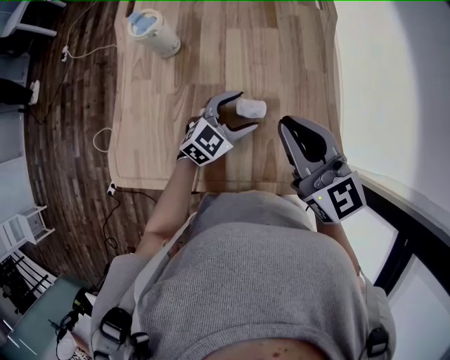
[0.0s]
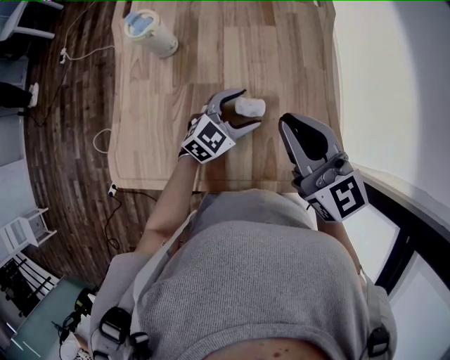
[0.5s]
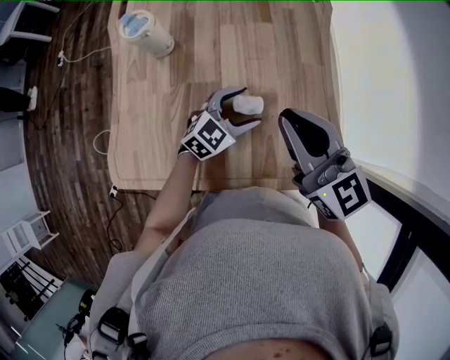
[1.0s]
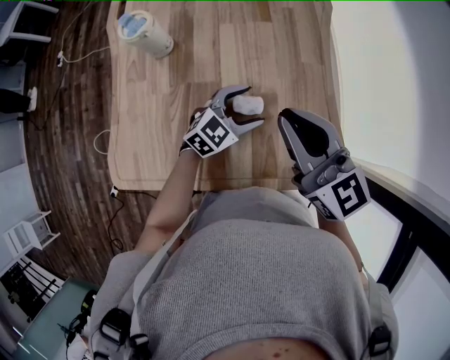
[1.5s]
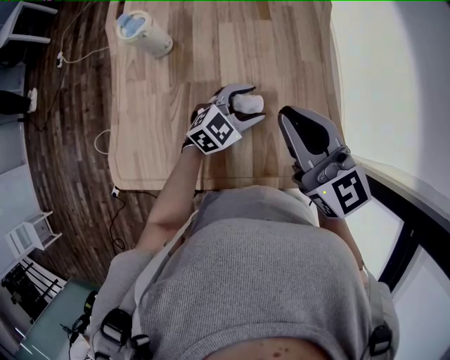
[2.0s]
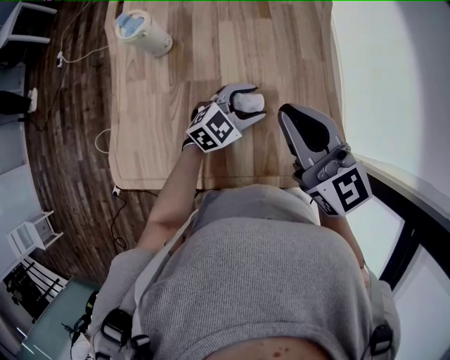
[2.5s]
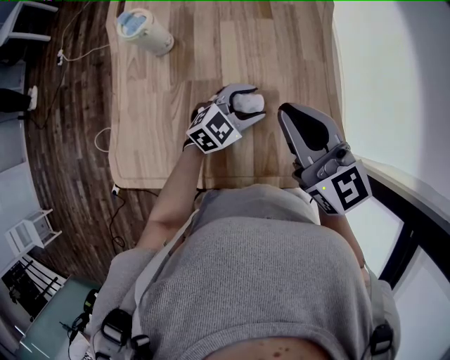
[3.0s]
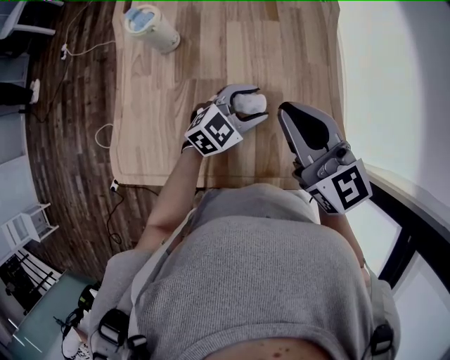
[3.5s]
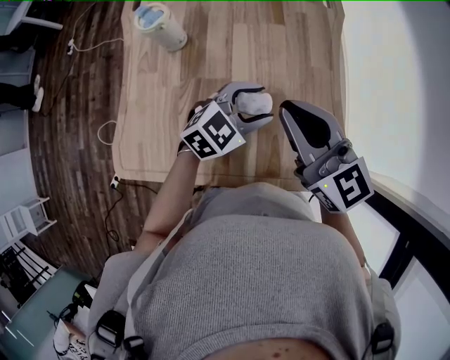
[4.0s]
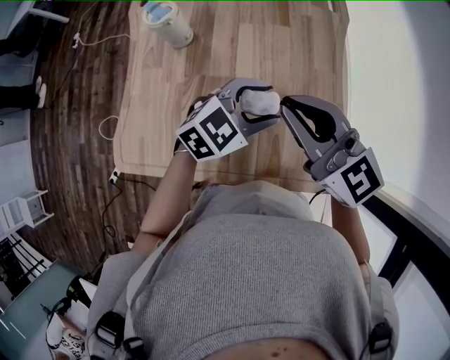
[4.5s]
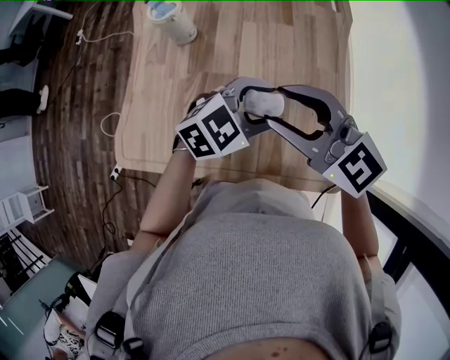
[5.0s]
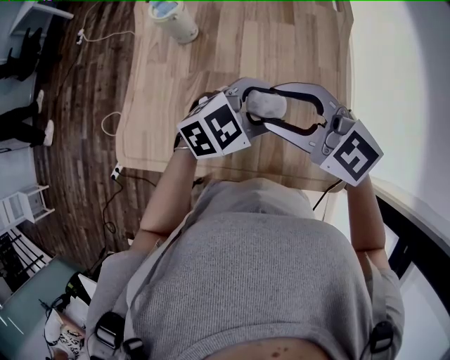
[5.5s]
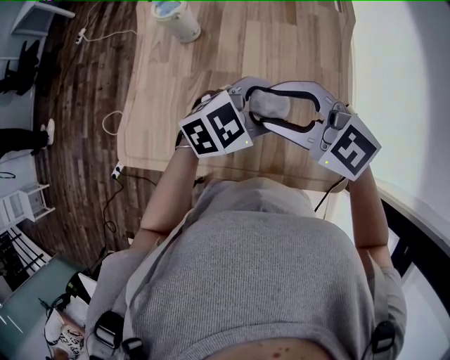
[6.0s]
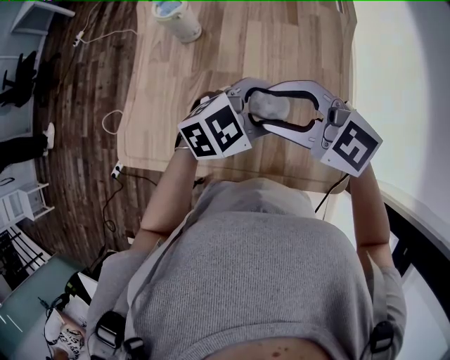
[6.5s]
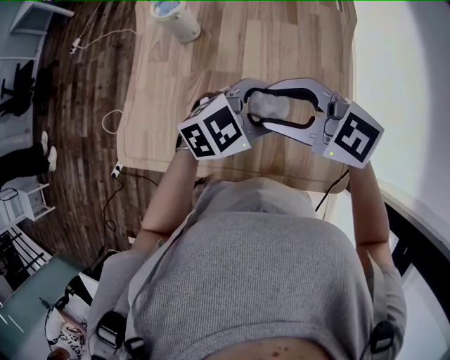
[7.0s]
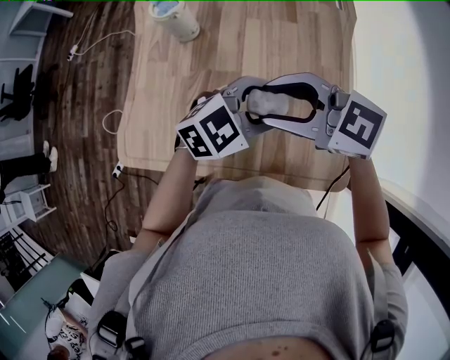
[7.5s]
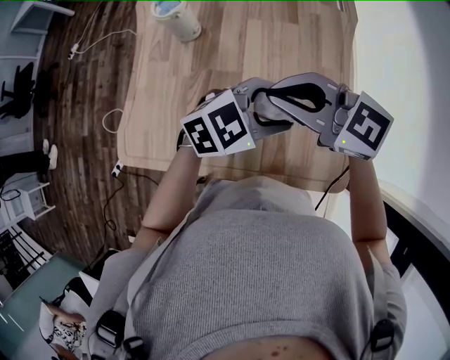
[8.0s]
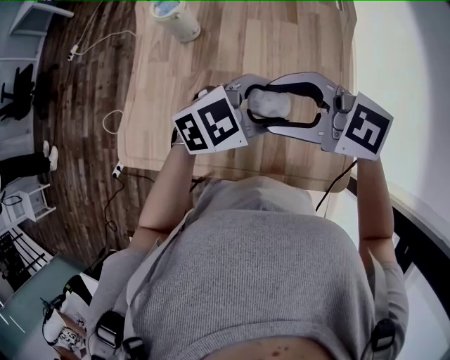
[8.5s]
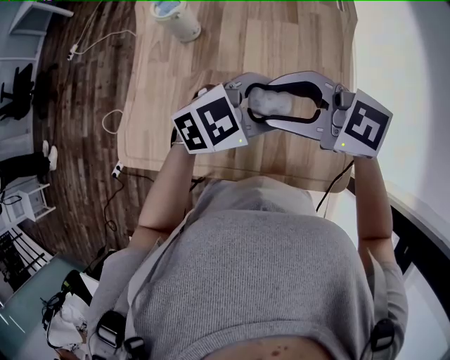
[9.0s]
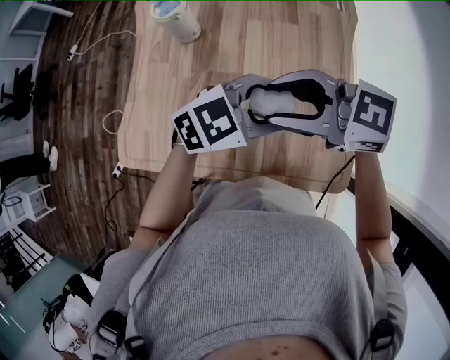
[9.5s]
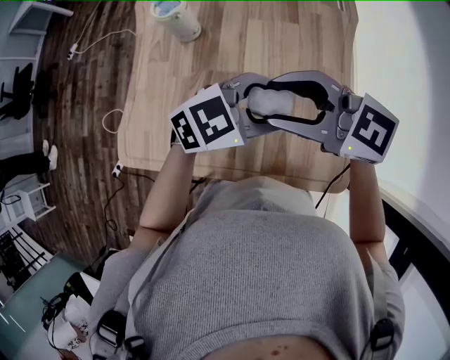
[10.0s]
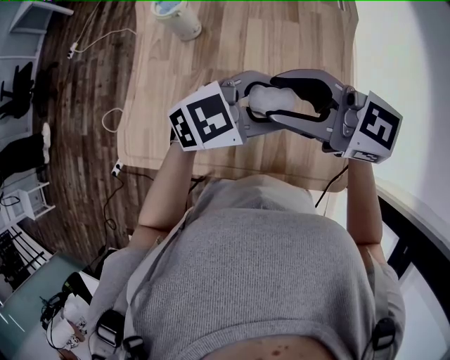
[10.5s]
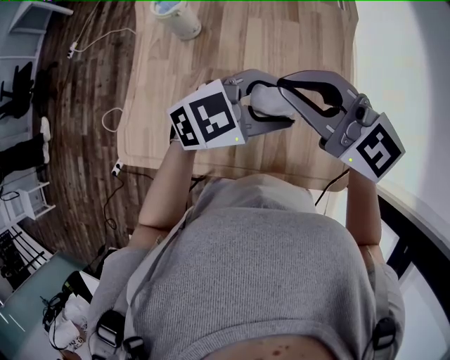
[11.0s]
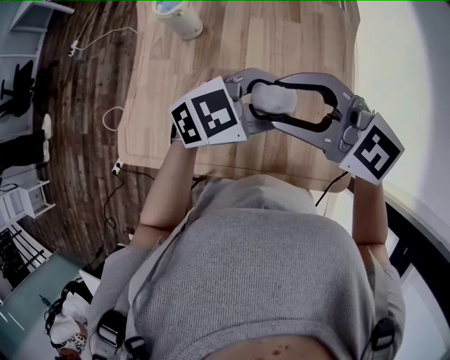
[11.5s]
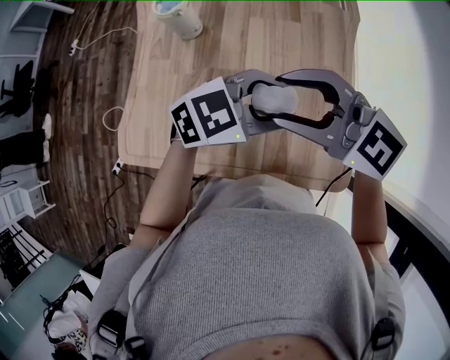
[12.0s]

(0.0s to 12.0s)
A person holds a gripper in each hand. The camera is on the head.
0.0s - 2.0s: The grippers move only a little.
2.0s - 4.0s: The left gripper moves upward, about 10 cm.
4.0s - 6.0s: The right gripper shifts by some 5 cm, turns by some 40 degrees, and opens its fingers, while the left gripper moves upward, some 5 cm.
6.0s - 8.0s: The right gripper closes up.
8.0s - 10.0s: The right gripper opens its fingers.
10.0s - 12.0s: The right gripper closes, then opens again.

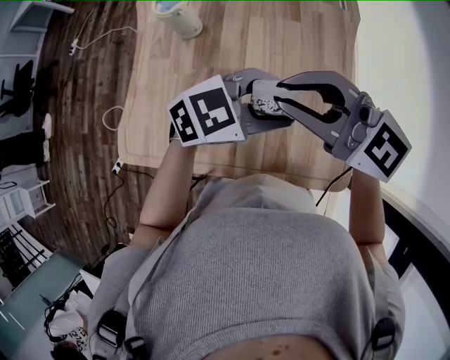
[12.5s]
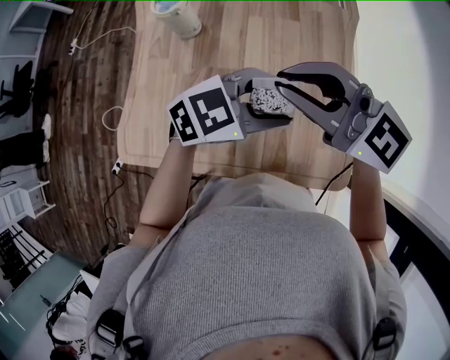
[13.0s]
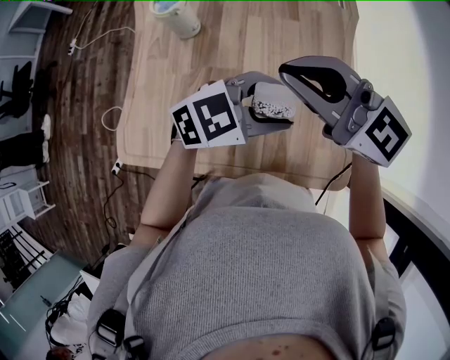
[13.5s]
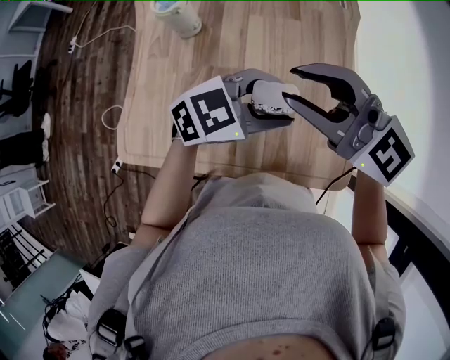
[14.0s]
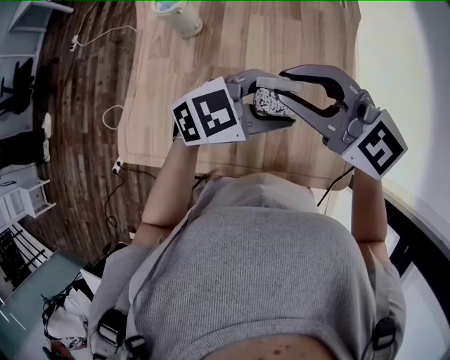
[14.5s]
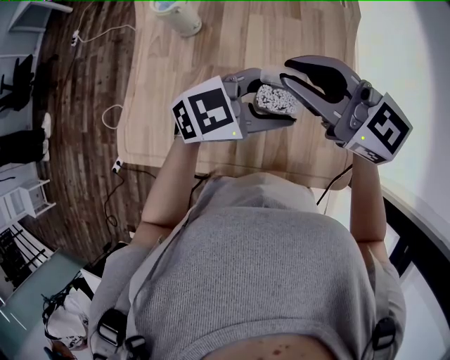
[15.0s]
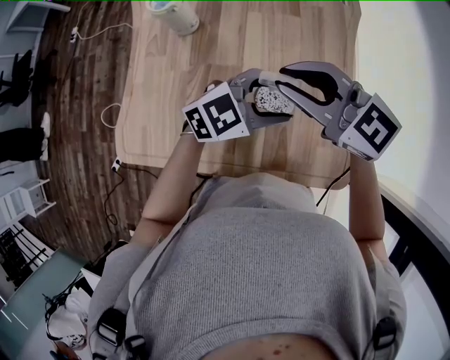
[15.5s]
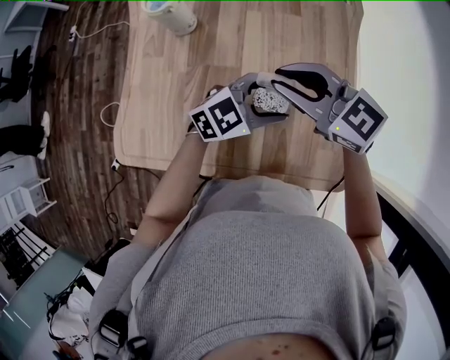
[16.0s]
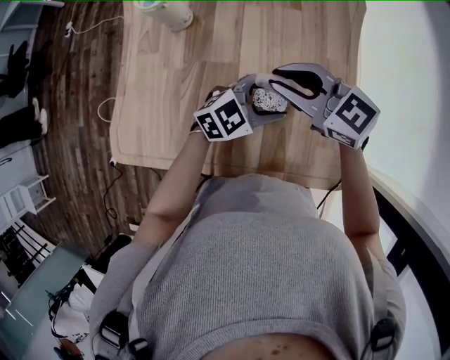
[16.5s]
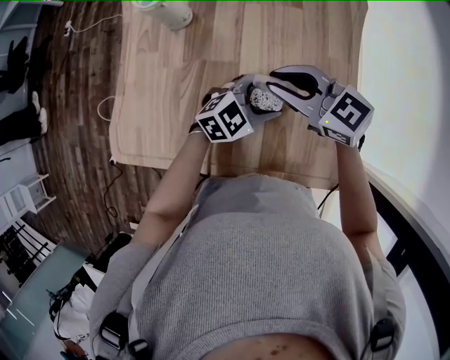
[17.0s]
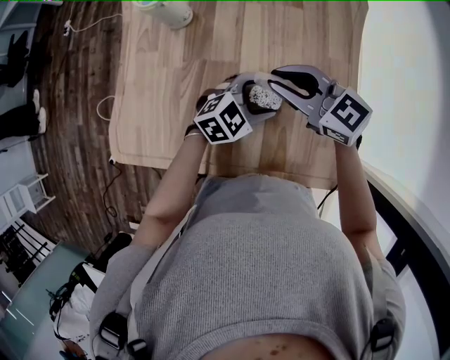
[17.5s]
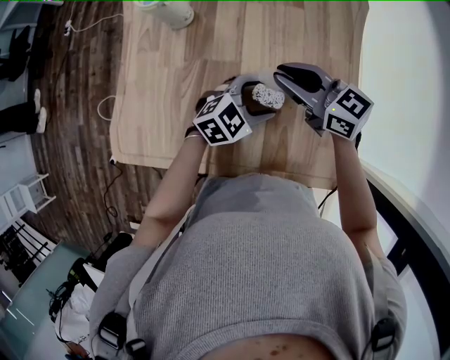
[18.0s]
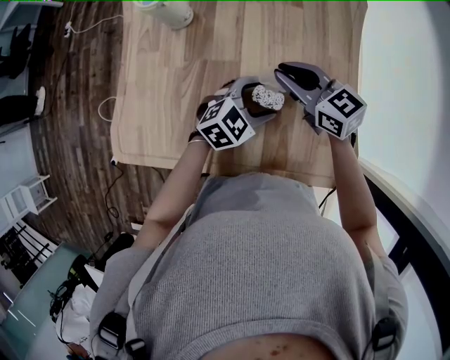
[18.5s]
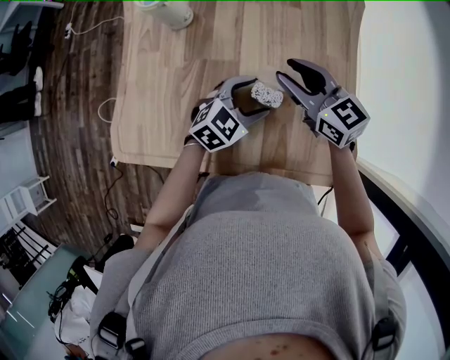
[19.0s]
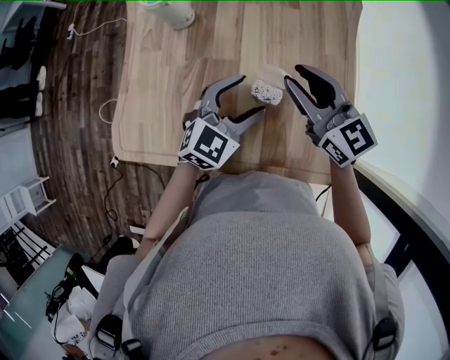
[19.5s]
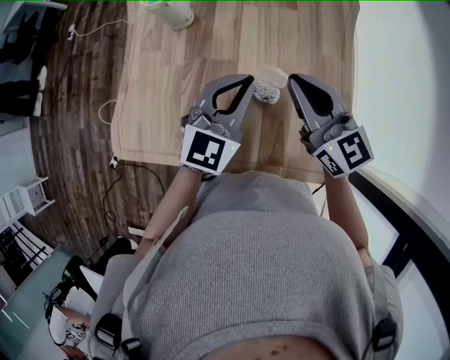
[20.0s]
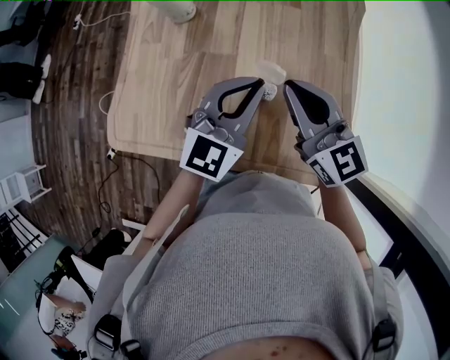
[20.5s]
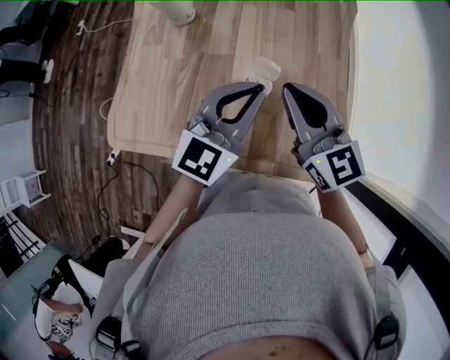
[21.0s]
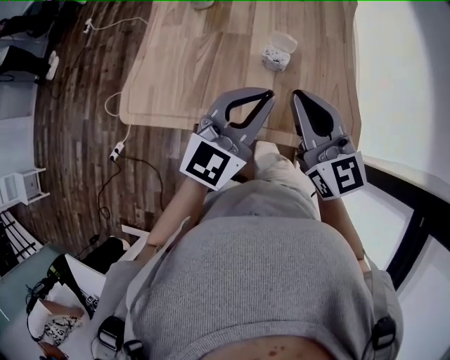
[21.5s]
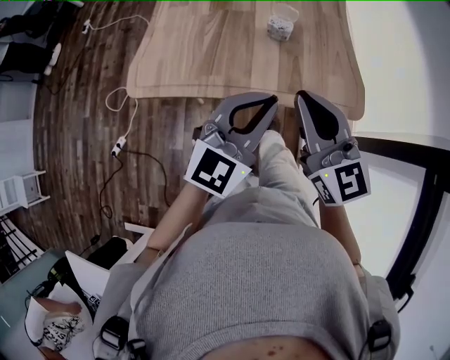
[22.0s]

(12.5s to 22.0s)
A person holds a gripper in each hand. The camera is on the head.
12.5s - 14.5s: The grippers make only small movements.
14.5s - 16.5s: The two grippers go some 15 cm downward.
16.5s - 18.0s: The grippers move only a little.
18.0s - 20.0s: The left gripper moves upward, some 15 cm, changes its angle by roughly 40 degrees, and closes its fingers. Meanwhile the right gripper travels upward by about 10 cm, and rotates approximately 30 degrees.
20.0s - 22.0s: Both grippers move backward, roughly 25 cm.

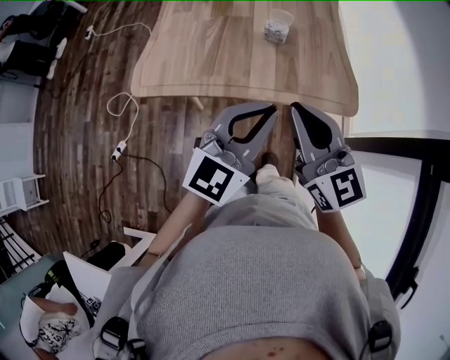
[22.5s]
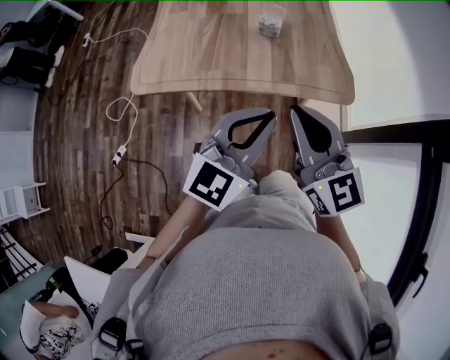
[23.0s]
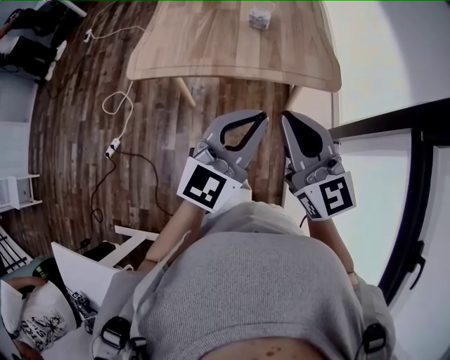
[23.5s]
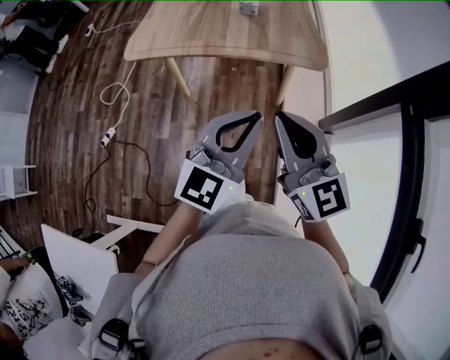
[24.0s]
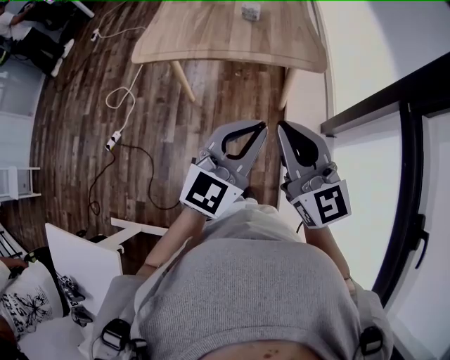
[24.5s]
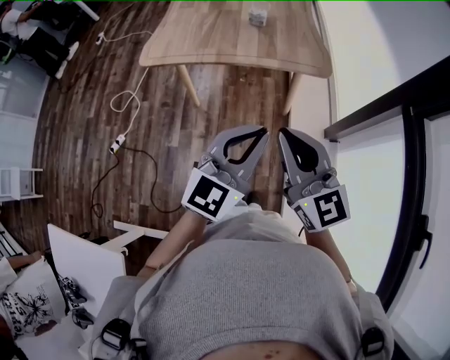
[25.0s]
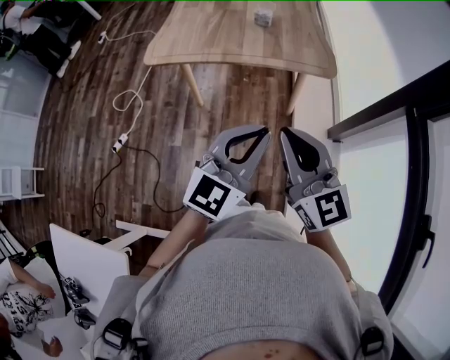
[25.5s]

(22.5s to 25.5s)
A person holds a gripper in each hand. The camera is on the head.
22.5s - 24.0s: The two grippers go about 20 cm backward.
24.0s - 25.5s: There are only small adjustments of the grippers.

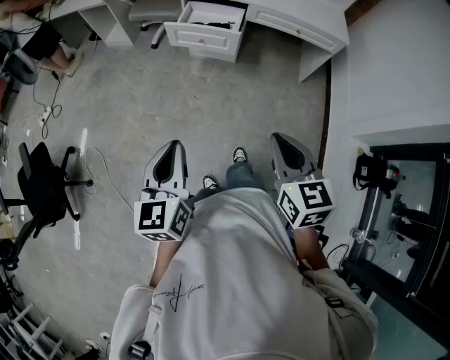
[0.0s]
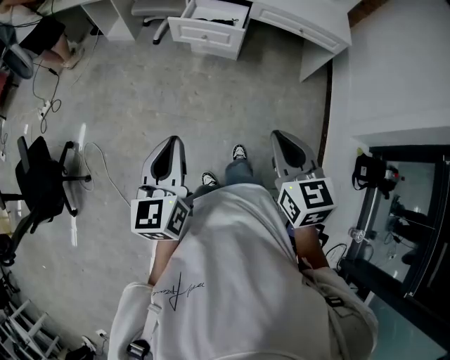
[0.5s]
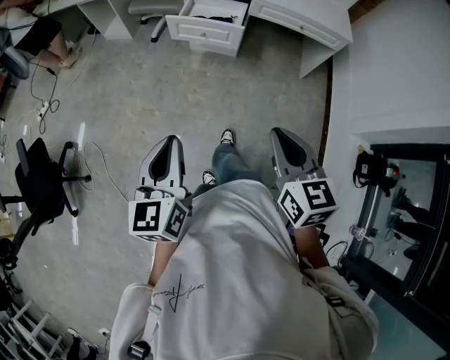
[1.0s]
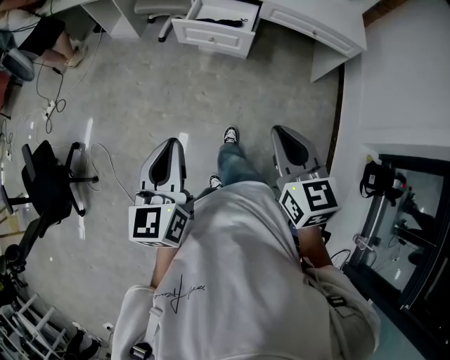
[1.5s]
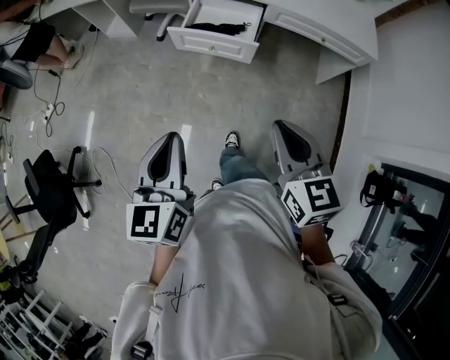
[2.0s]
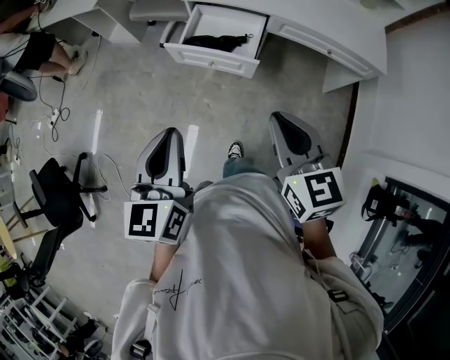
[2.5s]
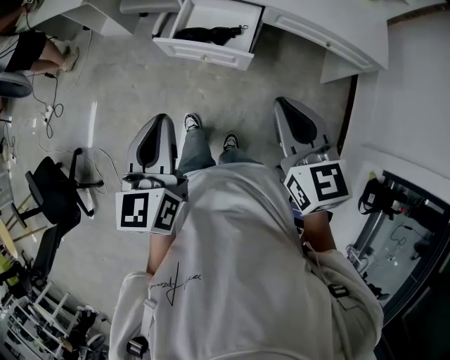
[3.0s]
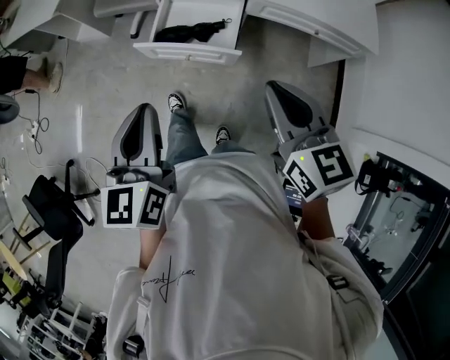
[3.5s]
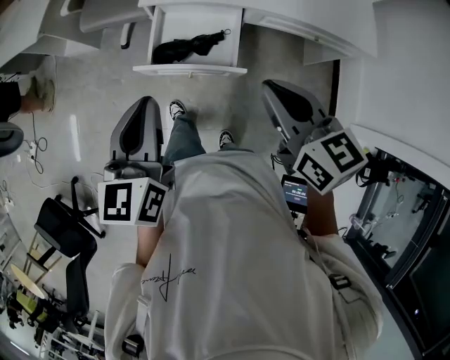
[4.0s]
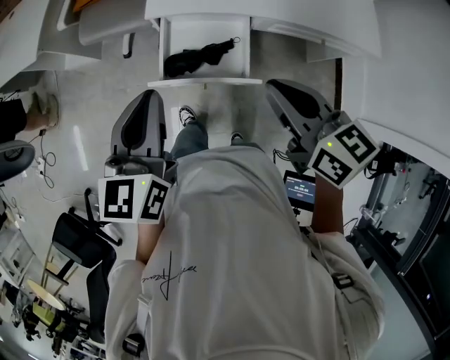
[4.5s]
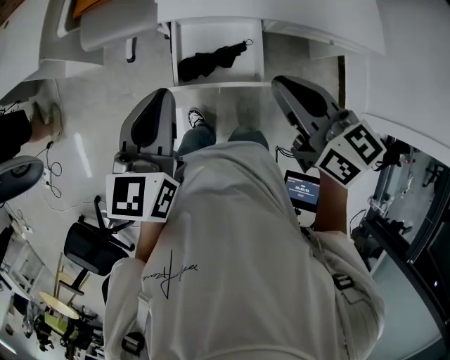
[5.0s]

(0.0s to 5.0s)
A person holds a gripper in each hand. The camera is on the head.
0.0s - 2.5s: The grippers both shift forward by roughly 30 cm.
2.5s - 5.0s: Both grippers travel together forward, some 30 cm. The left gripper turns by roughly 20 degrees.
